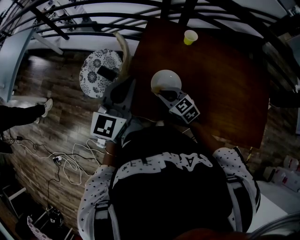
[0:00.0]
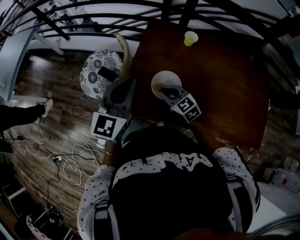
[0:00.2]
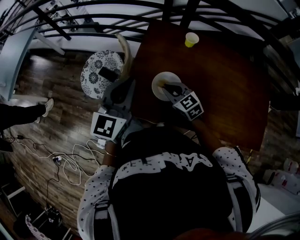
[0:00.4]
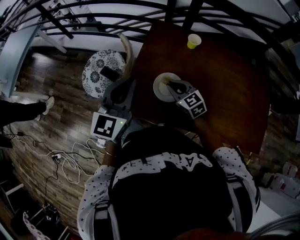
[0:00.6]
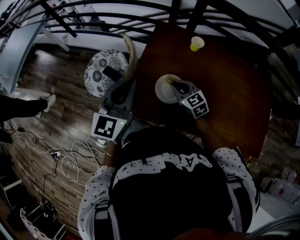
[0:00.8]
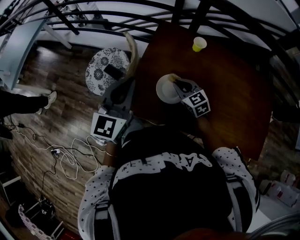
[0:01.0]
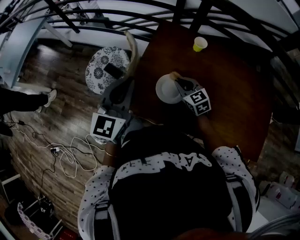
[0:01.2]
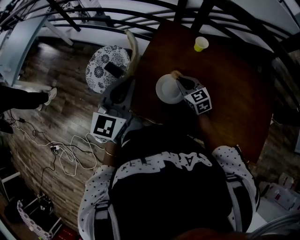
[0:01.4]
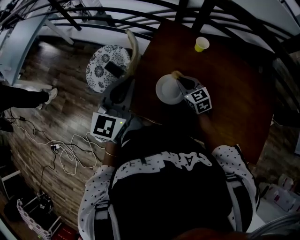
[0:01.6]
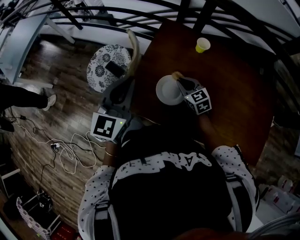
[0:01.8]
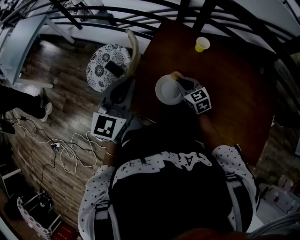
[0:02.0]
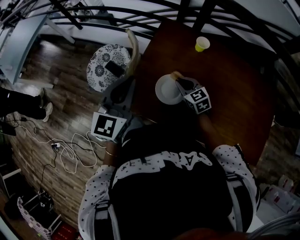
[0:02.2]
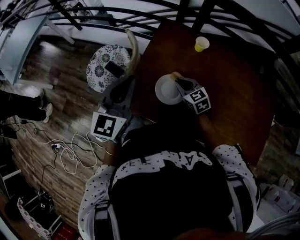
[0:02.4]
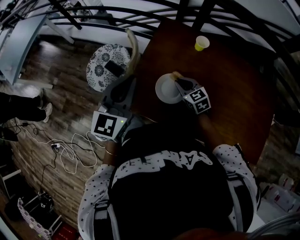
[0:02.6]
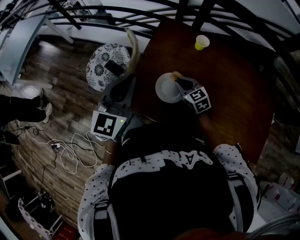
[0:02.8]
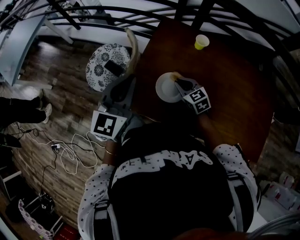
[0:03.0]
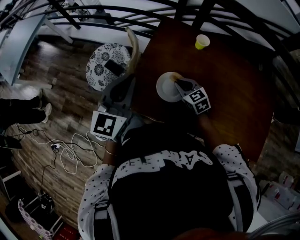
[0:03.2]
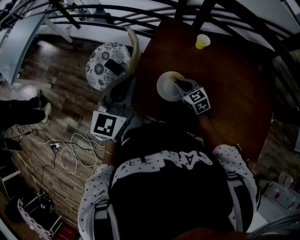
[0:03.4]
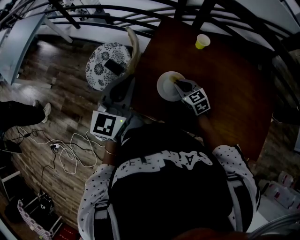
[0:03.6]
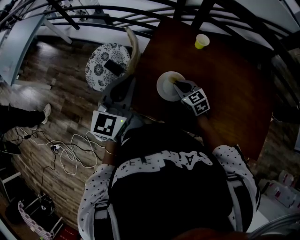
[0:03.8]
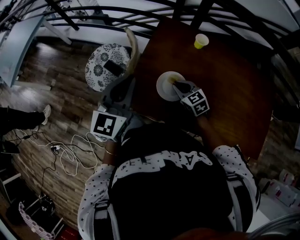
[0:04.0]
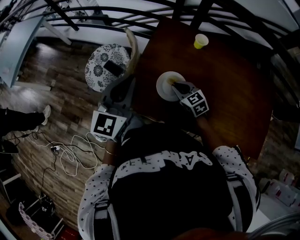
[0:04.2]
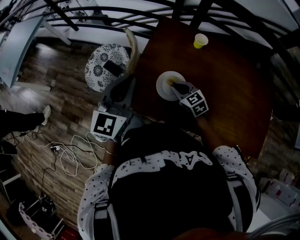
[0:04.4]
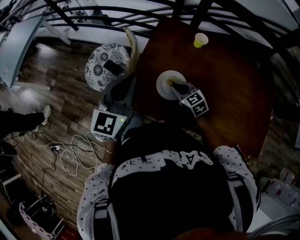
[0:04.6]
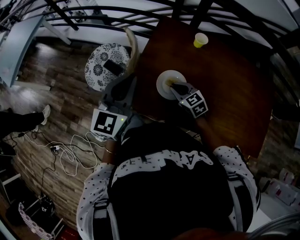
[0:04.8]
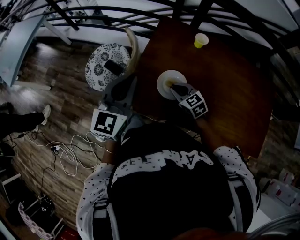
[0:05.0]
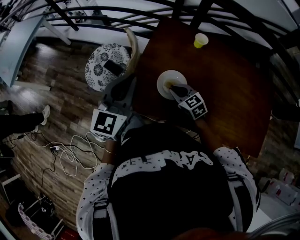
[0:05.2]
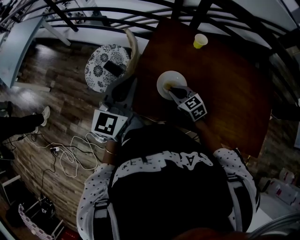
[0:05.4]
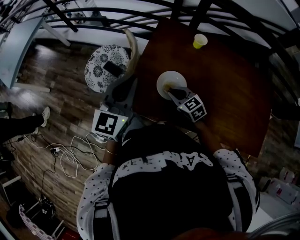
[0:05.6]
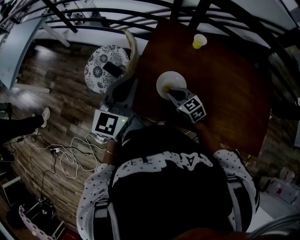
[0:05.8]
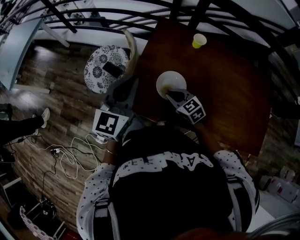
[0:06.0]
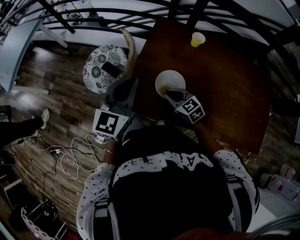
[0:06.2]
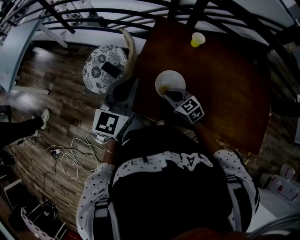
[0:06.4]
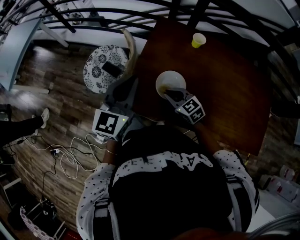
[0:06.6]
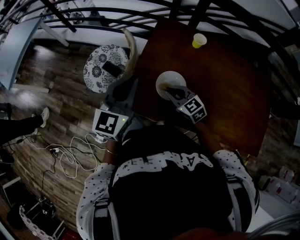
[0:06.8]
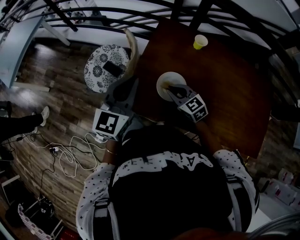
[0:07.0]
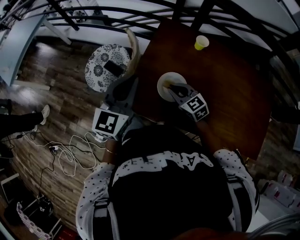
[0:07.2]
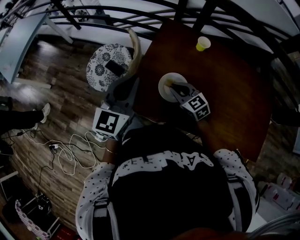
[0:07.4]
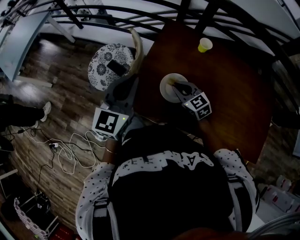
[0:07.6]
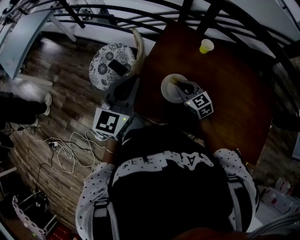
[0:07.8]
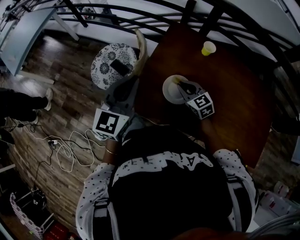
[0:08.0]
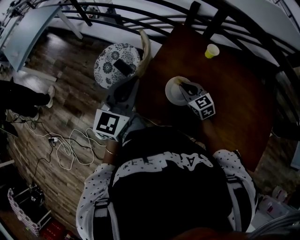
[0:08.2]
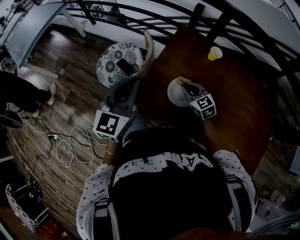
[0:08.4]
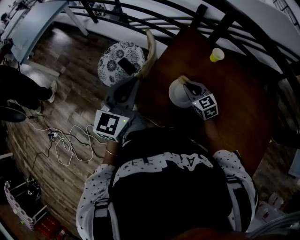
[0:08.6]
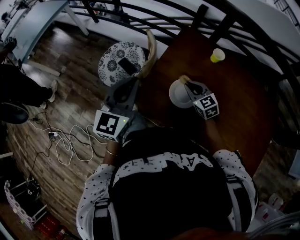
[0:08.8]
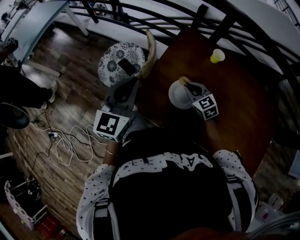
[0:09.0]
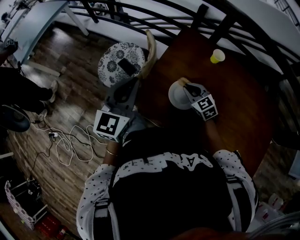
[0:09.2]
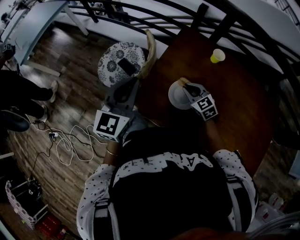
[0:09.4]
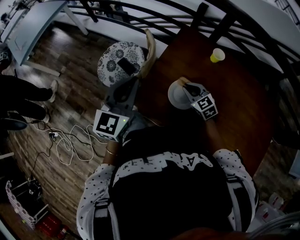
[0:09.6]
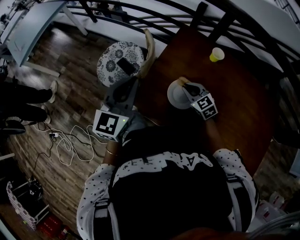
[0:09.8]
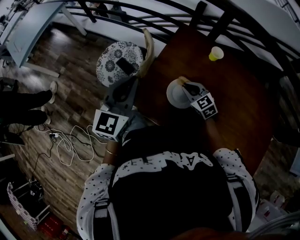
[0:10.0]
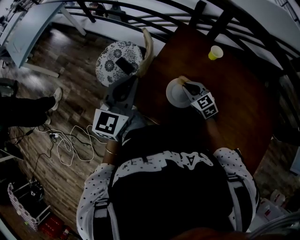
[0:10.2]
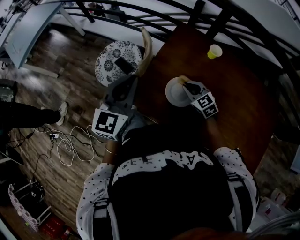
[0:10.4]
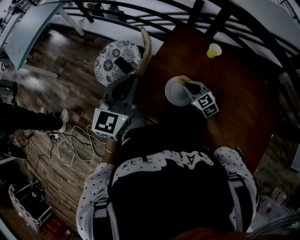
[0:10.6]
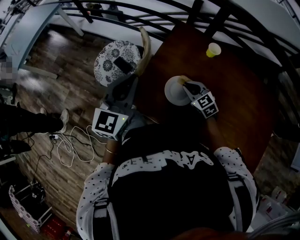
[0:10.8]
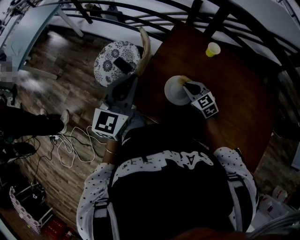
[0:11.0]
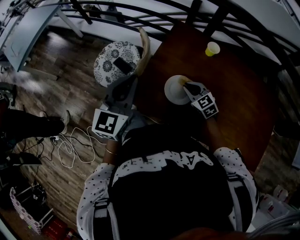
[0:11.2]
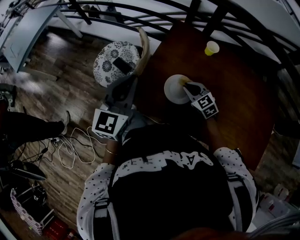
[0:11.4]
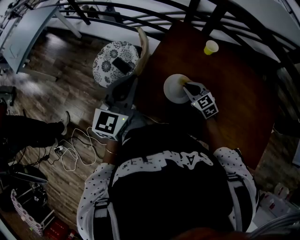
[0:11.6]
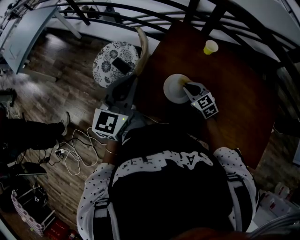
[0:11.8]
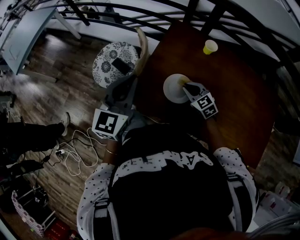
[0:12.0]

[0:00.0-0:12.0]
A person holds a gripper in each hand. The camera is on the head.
0:00.0 to 0:01.6: The right gripper moves to the right and forward, some 10 cm.
0:01.6 to 0:04.4: The grippers make only small movements.
0:04.4 to 0:06.0: The grippers stay close to where they were, moving slightly.
0:06.0 to 0:07.6: The right gripper ends up roughly 5 cm from where it was.
0:07.6 to 0:12.0: The grippers stay close to where they were, moving slightly.

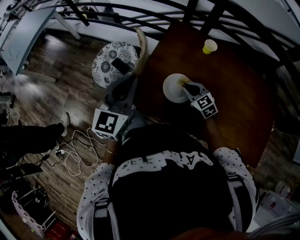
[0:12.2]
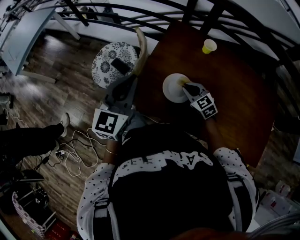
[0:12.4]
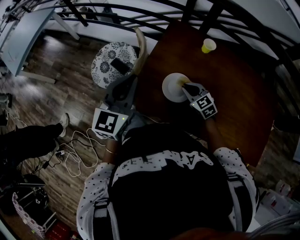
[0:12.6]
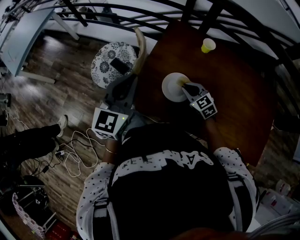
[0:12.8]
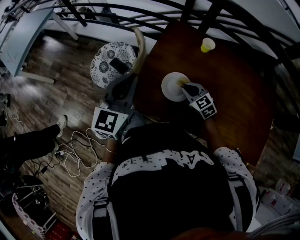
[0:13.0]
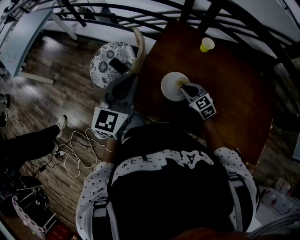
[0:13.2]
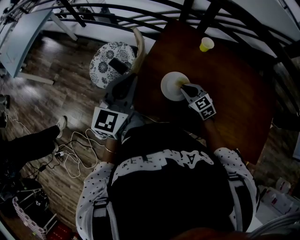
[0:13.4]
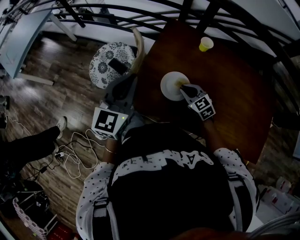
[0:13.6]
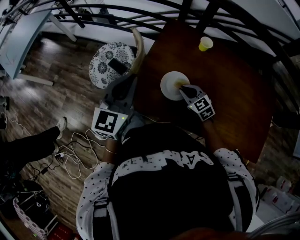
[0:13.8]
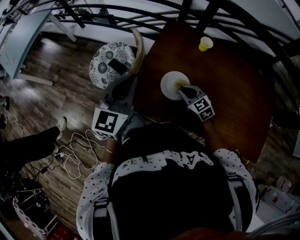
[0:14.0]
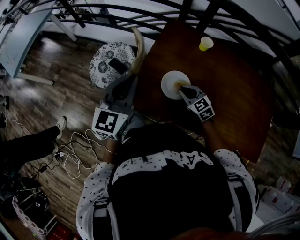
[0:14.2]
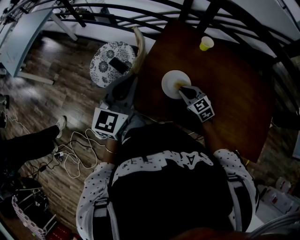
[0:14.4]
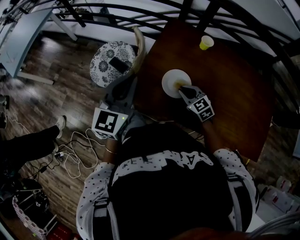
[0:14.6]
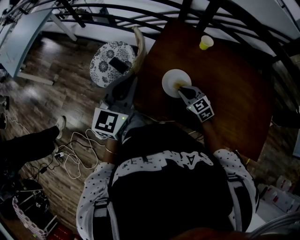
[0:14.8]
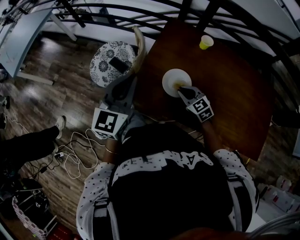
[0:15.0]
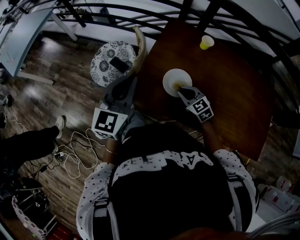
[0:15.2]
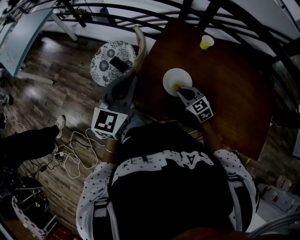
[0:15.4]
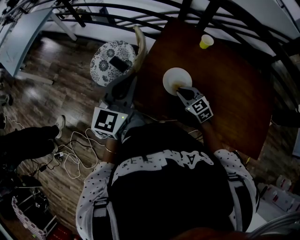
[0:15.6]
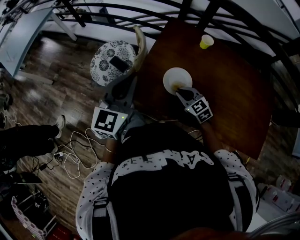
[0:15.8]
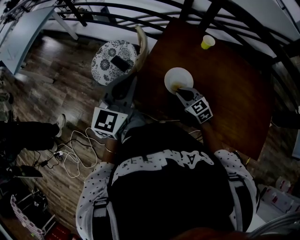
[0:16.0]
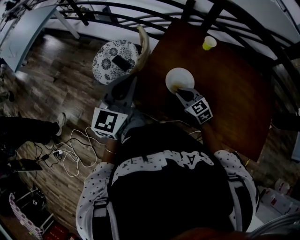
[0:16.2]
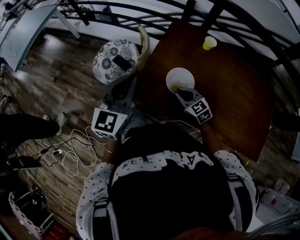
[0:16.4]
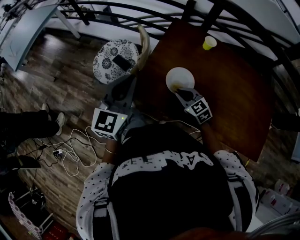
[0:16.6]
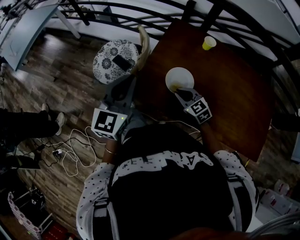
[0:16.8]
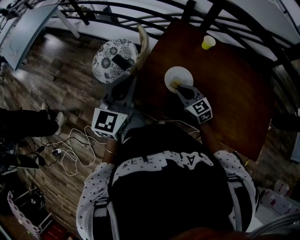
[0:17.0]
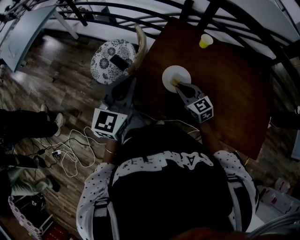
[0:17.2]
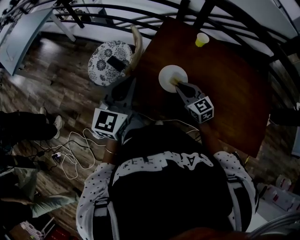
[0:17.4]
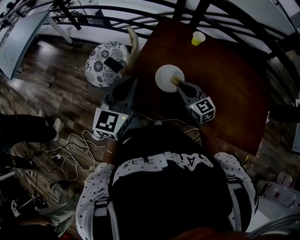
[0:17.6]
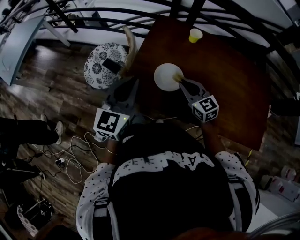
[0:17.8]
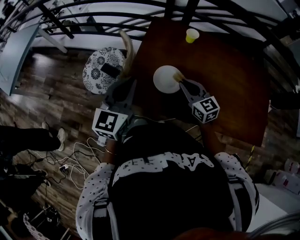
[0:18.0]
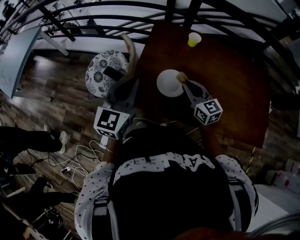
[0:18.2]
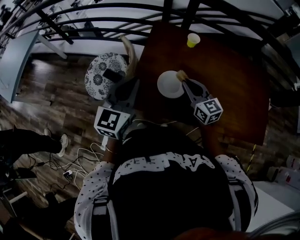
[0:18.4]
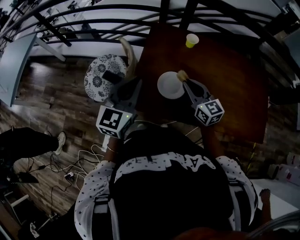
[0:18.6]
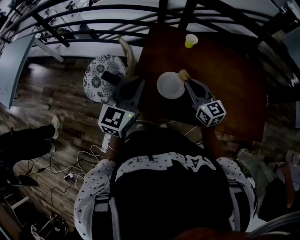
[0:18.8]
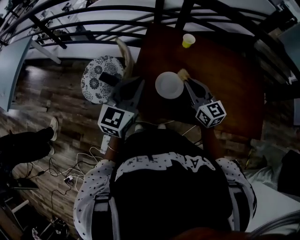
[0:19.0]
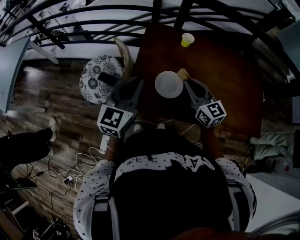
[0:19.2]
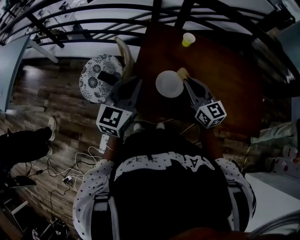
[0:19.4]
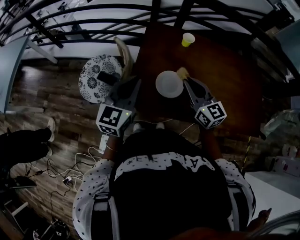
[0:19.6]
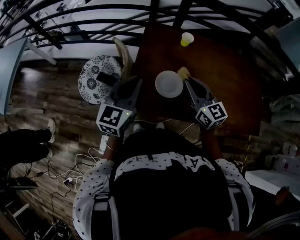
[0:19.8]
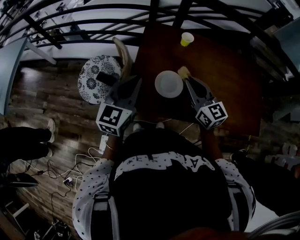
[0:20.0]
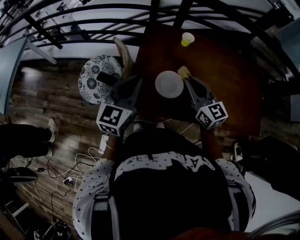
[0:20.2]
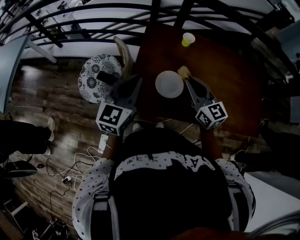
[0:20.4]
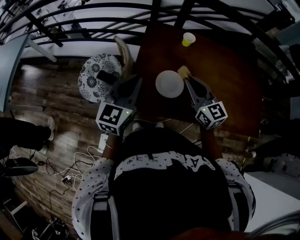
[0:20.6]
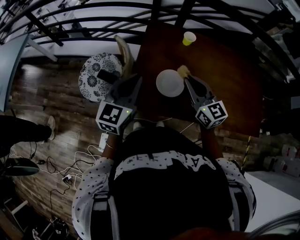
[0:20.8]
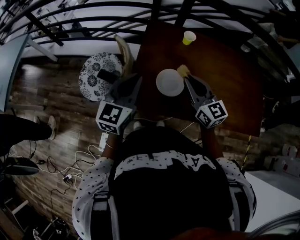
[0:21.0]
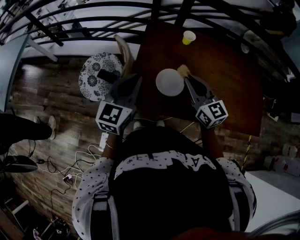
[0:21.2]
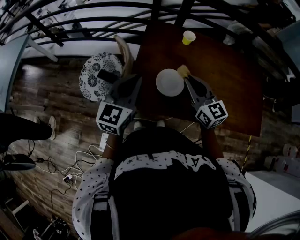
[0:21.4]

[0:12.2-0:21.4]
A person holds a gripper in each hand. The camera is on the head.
0:12.2 to 0:15.2: The grippers make only small movements.
0:15.2 to 0:16.8: The grippers move only a little.
0:16.8 to 0:18.4: The left gripper ends up roughly 5 cm from where it was. Meanwhile the right gripper moves upward and to the right, roughly 15 cm, and rotates some 40 degrees.
0:18.4 to 0:19.8: The right gripper is displaced upward by approximately 5 cm.
0:19.8 to 0:21.4: Both grippers stay about where they are.

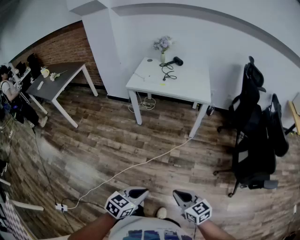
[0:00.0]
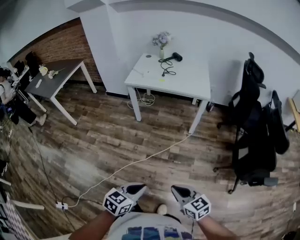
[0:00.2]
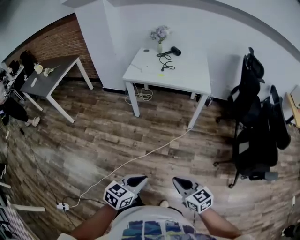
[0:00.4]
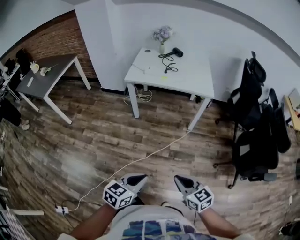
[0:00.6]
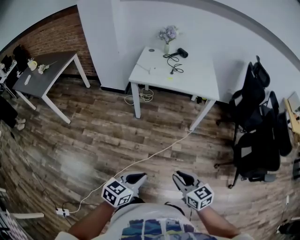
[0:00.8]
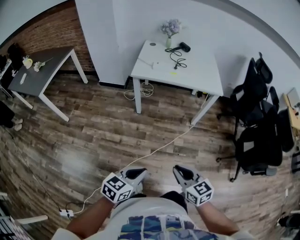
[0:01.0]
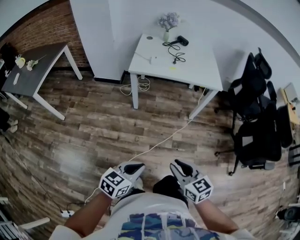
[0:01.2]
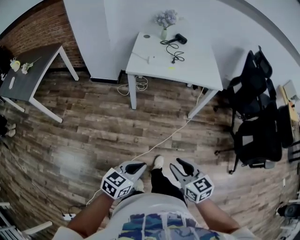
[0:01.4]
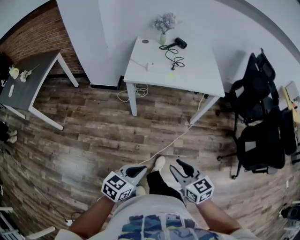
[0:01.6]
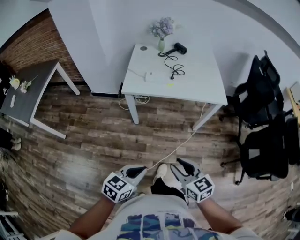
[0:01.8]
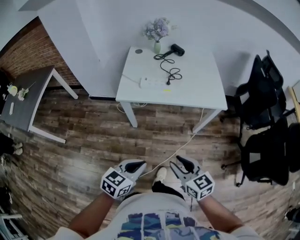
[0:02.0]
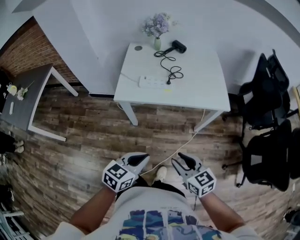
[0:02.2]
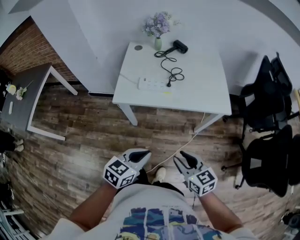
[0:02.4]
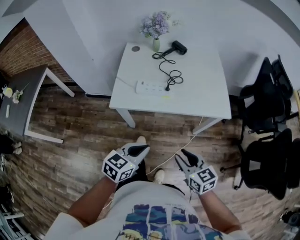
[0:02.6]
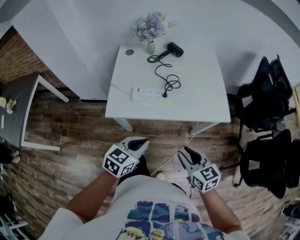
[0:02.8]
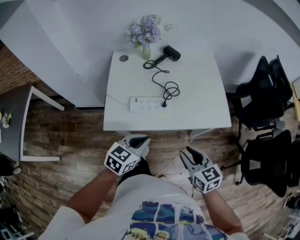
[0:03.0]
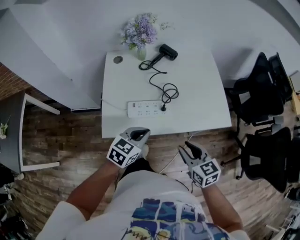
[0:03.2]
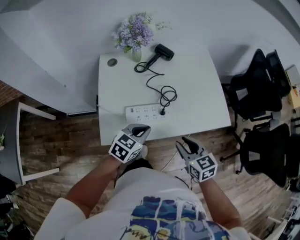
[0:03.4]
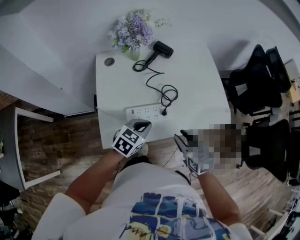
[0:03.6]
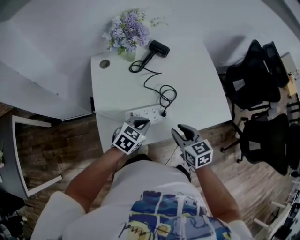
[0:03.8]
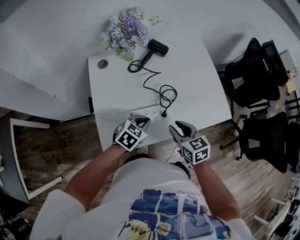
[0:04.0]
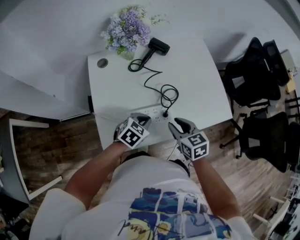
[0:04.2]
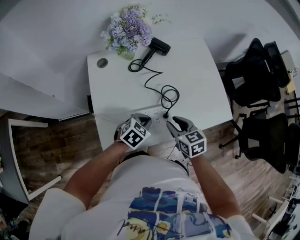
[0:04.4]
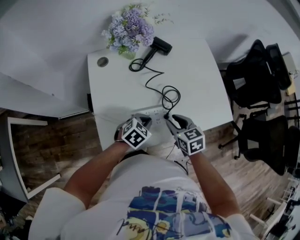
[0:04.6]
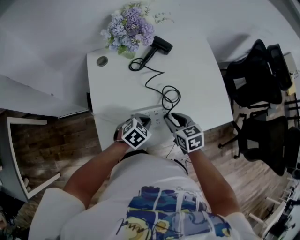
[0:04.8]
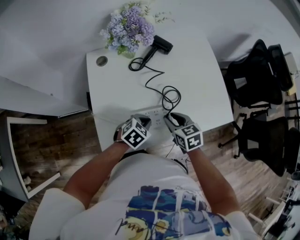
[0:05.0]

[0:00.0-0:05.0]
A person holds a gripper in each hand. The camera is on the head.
0:00.0 to 0:01.6: The two grippers go approximately 40 cm forward and to the left. The right gripper opens up.
0:01.6 to 0:03.4: Both grippers are carried forward, some 60 cm.
0:03.4 to 0:05.0: The right gripper shifts some 20 cm forward, to the left and downward; the left gripper goes roughly 15 cm downward and forward, and turns by roughly 20 degrees.
